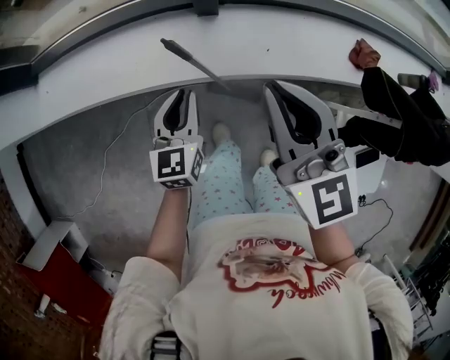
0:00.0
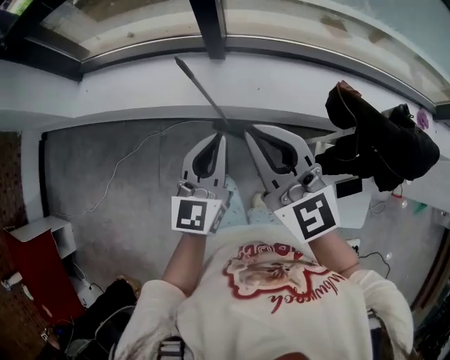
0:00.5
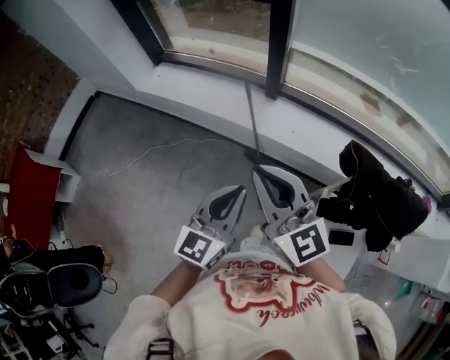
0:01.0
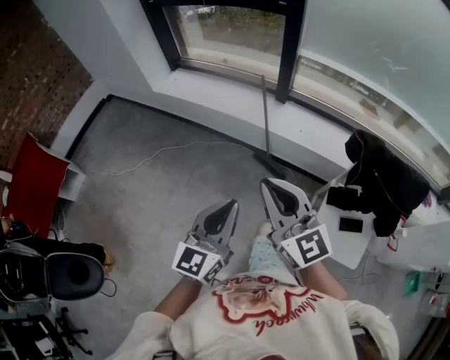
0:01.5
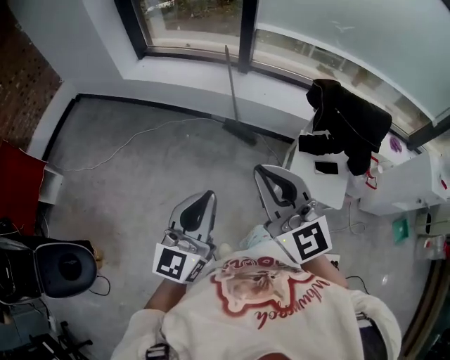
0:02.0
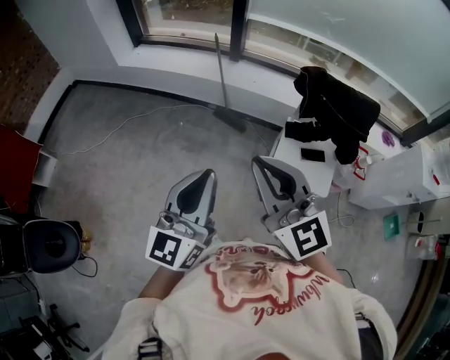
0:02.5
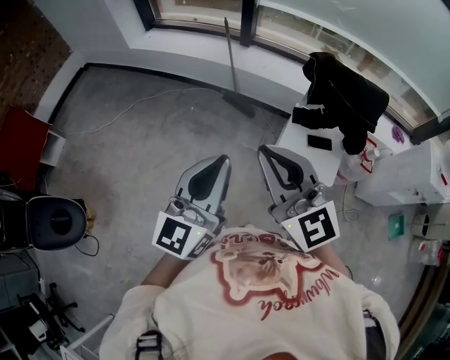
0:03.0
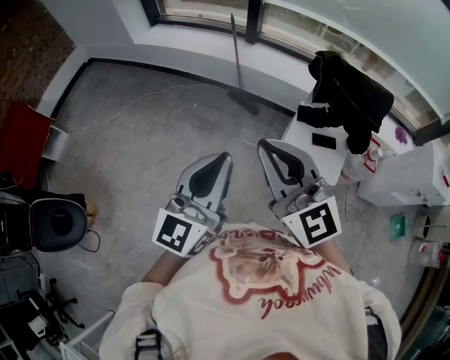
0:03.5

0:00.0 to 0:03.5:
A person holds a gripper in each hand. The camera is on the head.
0:00.0 to 0:02.0: Both grippers are carried backward, about 70 cm. The left gripper goes roughly 35 cm upward, and angles its fingers upward, by approximately 30 degrees, while the right gripper turns by some 30 degrees.
0:02.0 to 0:03.5: The left gripper shifts some 15 cm to the right and backward. Meanwhile the right gripper shifts roughly 10 cm backward and to the right.

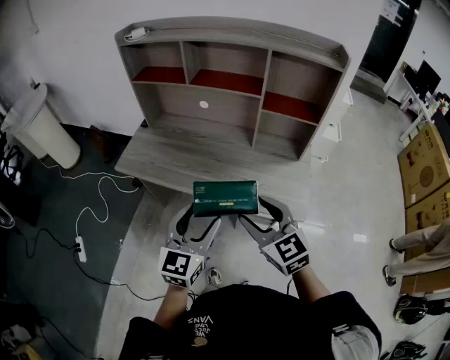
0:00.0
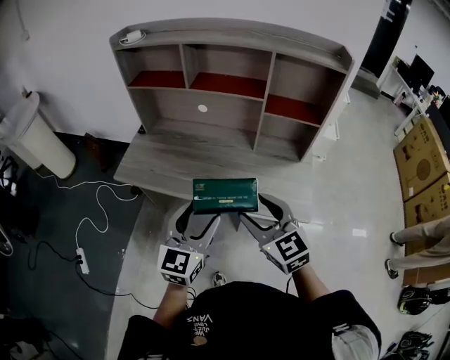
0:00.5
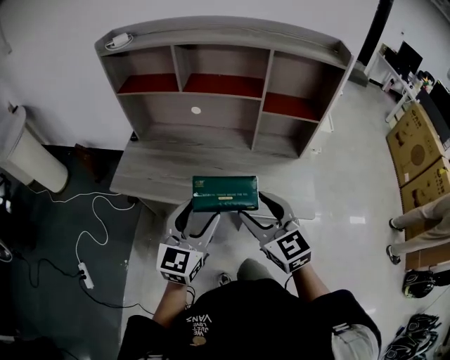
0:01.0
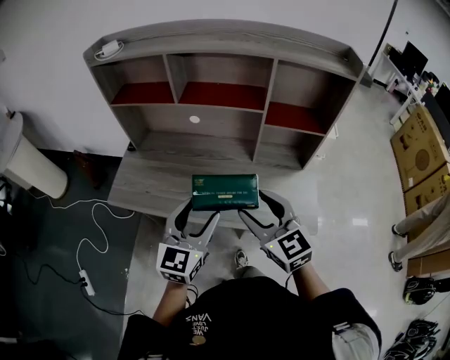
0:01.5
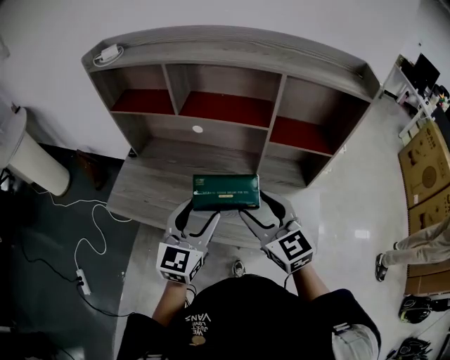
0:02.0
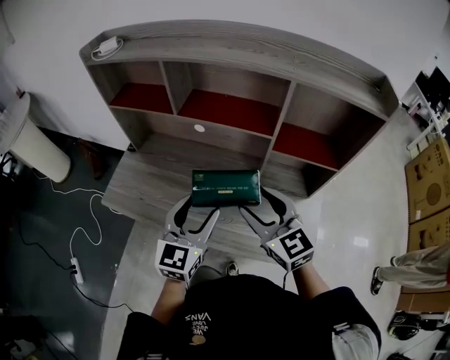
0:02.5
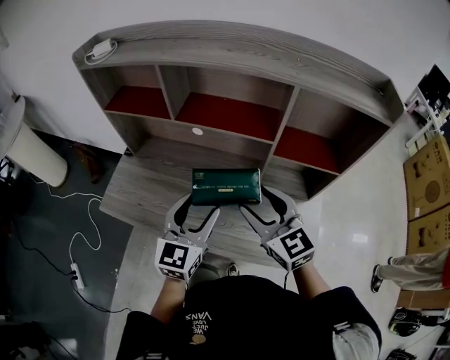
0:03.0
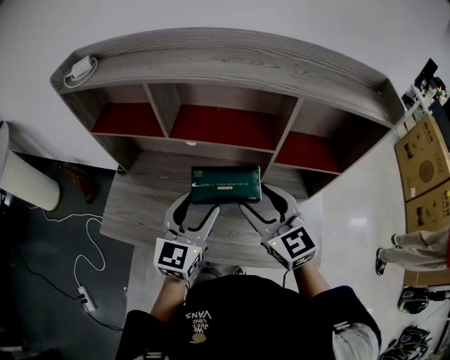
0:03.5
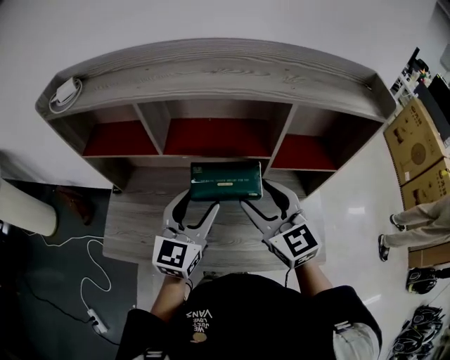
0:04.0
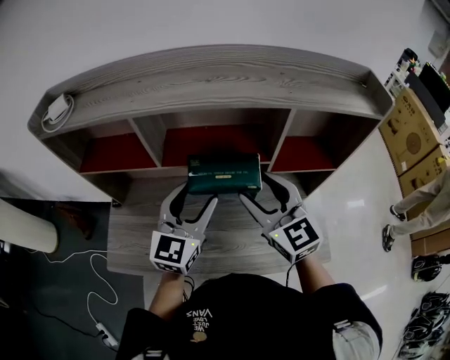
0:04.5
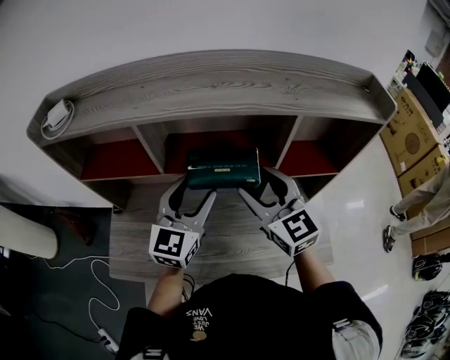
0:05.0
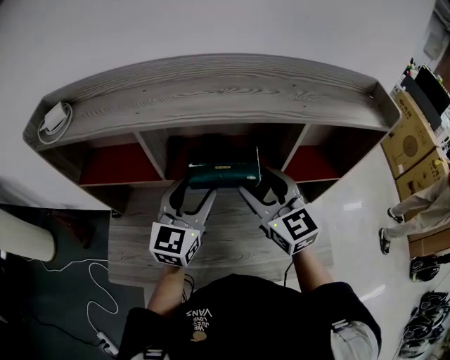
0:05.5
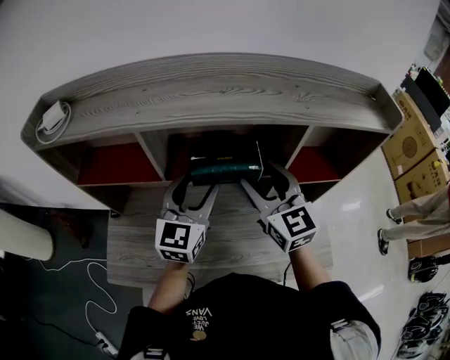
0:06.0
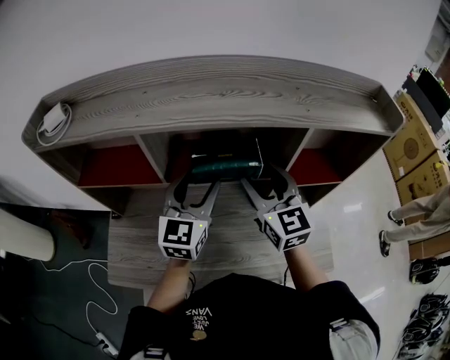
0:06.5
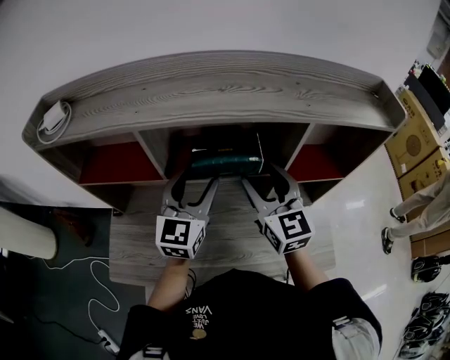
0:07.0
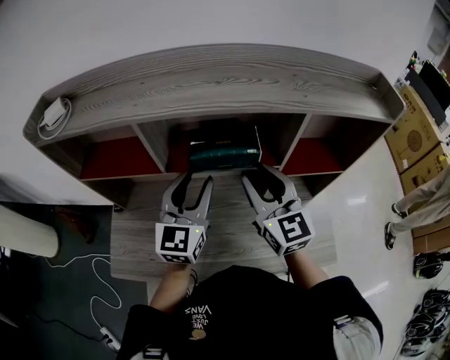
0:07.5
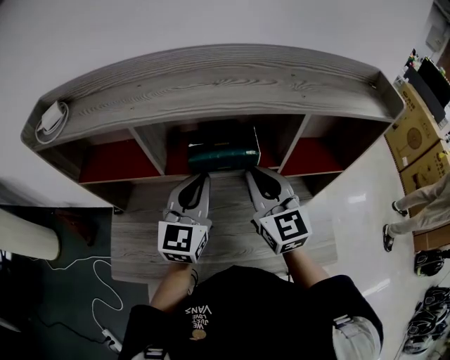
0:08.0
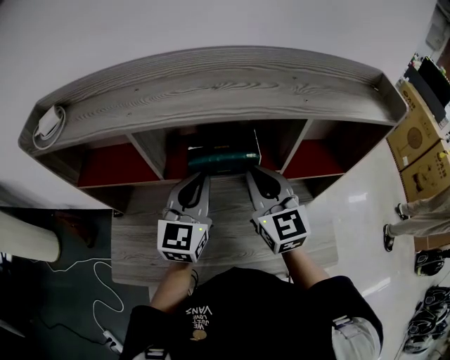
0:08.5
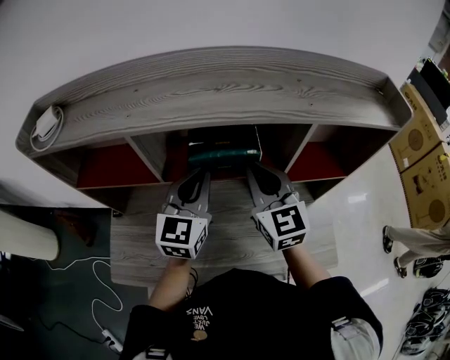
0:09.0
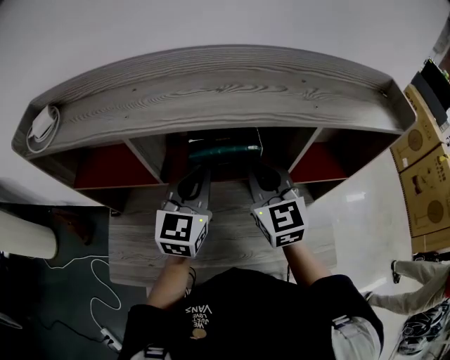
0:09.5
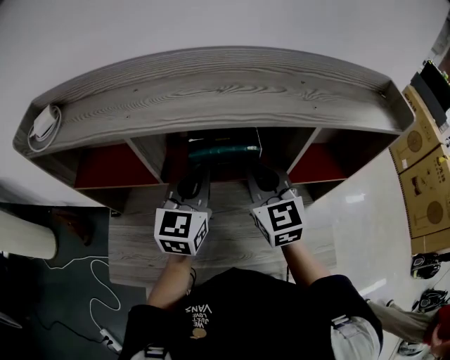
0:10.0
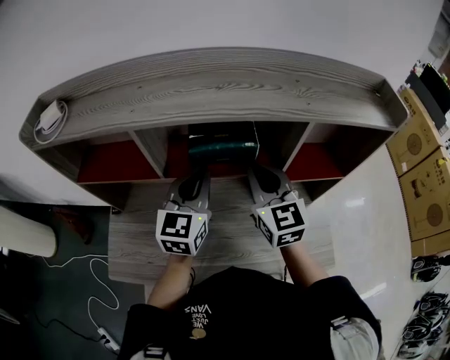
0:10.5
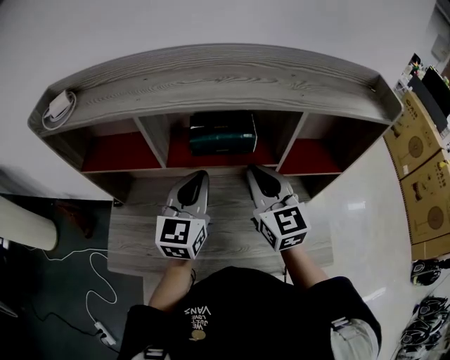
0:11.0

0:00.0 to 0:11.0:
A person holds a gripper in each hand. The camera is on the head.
0:00.0 to 0:02.0: The two grippers go some 20 cm forward.
0:02.0 to 0:03.5: The grippers both shift forward by about 10 cm.
0:03.5 to 0:05.5: Both grippers travel together forward, roughly 10 cm.
0:05.5 to 0:07.5: The right gripper closes its fingers.
0:07.5 to 0:09.0: The left gripper closes. The right gripper closes up.
0:09.0 to 0:11.0: The grippers stay close to where they were, moving slightly.

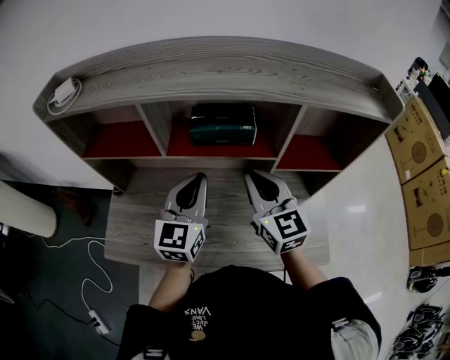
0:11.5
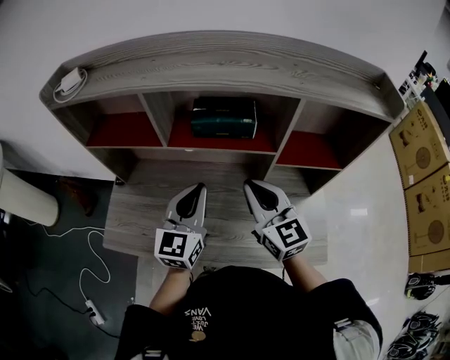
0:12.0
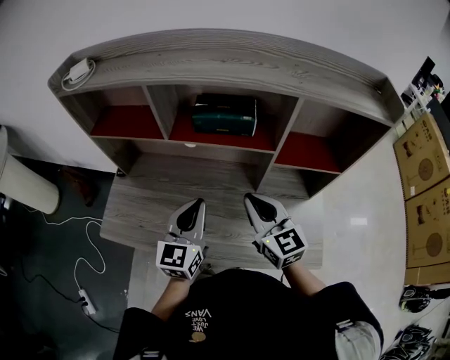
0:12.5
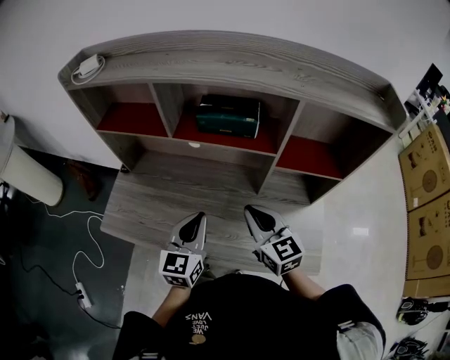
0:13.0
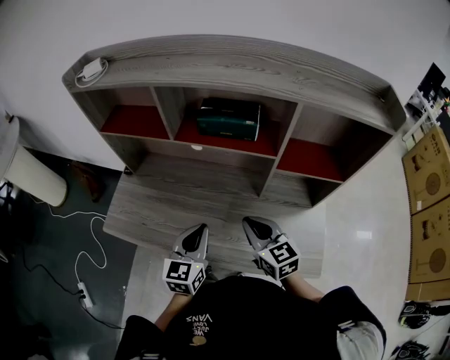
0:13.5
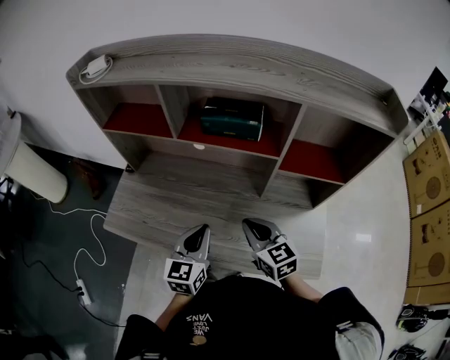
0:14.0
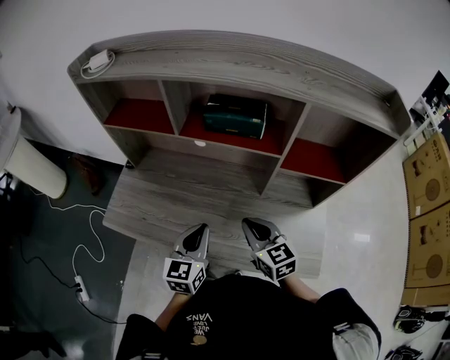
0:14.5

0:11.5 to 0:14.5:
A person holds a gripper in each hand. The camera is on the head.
0:11.5 to 0:13.0: The left gripper travels backward and downward by approximately 15 cm. Meanwhile the right gripper is displaced downward and backward by about 15 cm.
0:13.0 to 0:14.5: The right gripper travels downward by approximately 5 cm.

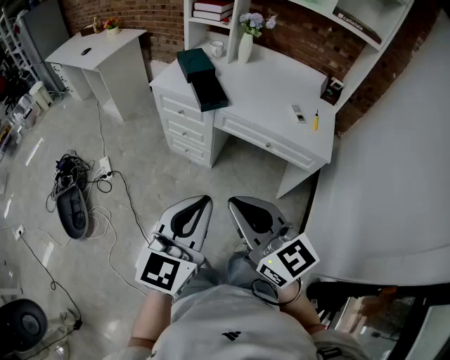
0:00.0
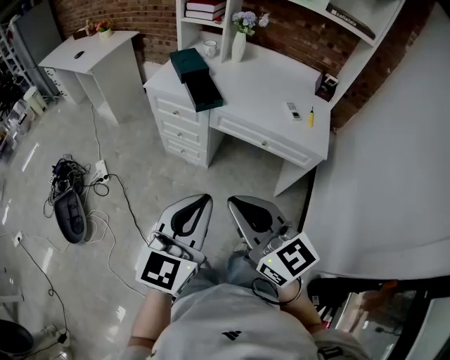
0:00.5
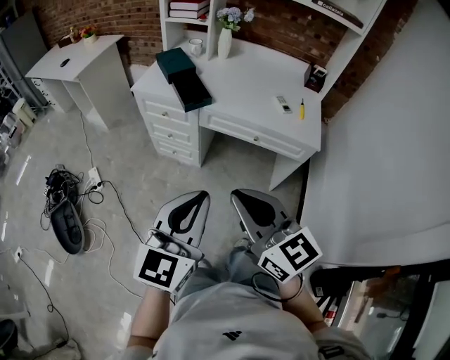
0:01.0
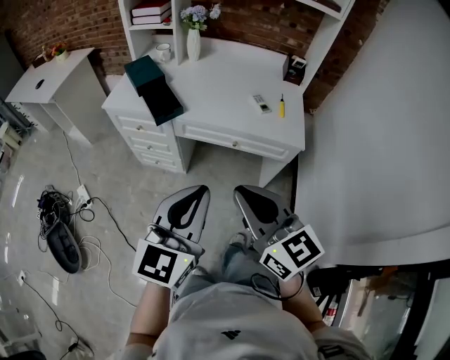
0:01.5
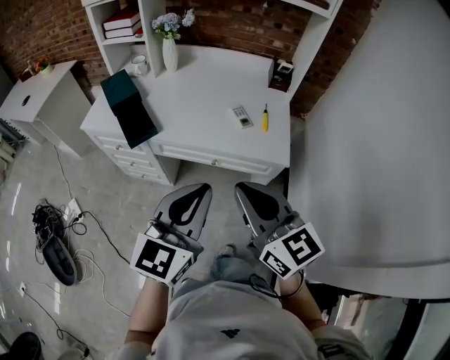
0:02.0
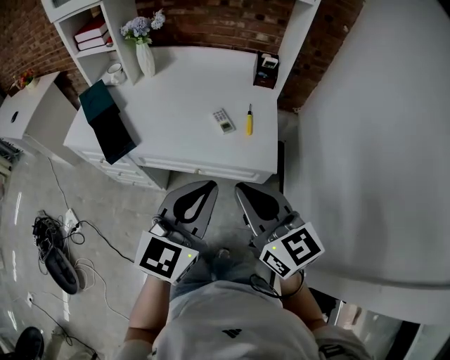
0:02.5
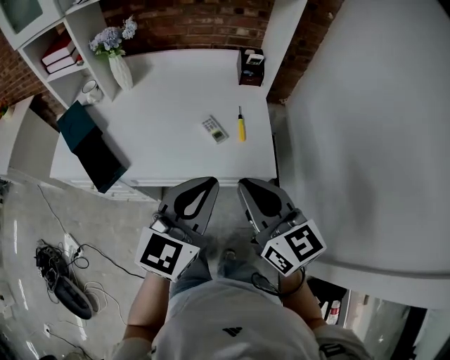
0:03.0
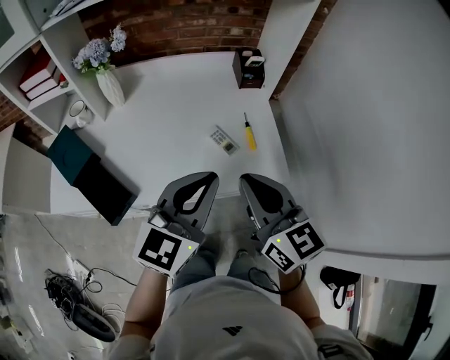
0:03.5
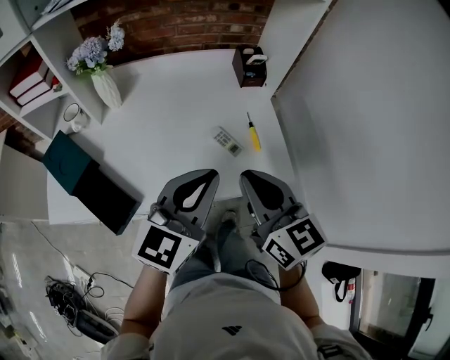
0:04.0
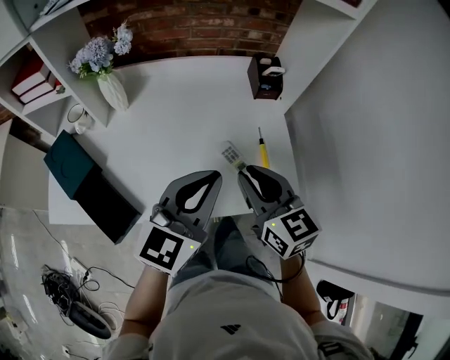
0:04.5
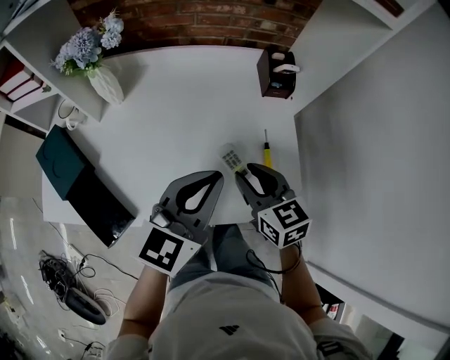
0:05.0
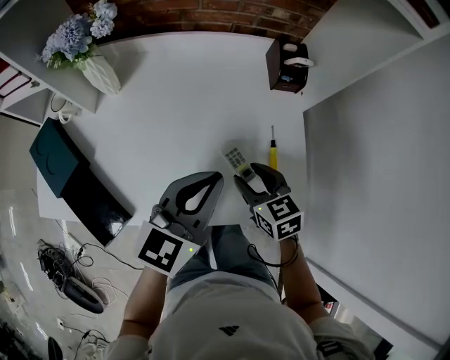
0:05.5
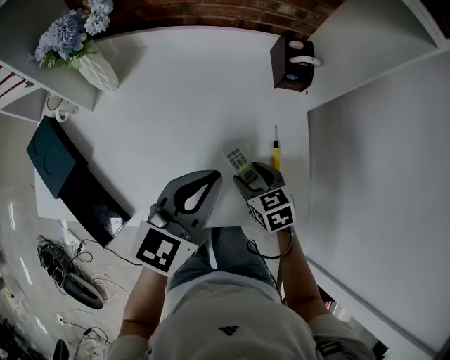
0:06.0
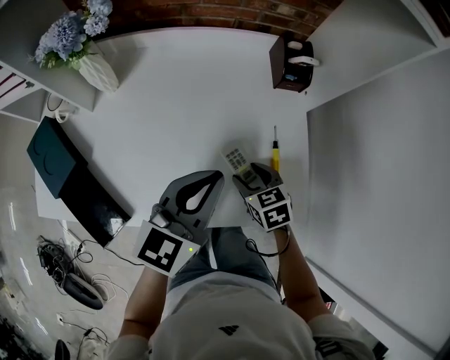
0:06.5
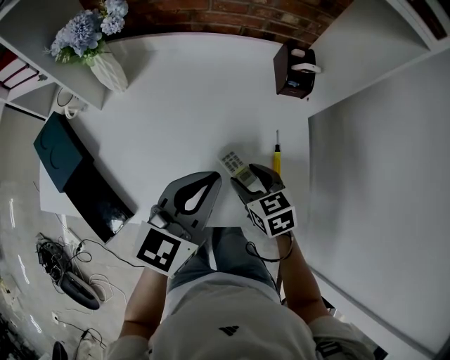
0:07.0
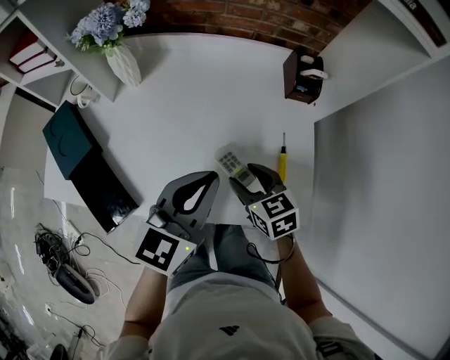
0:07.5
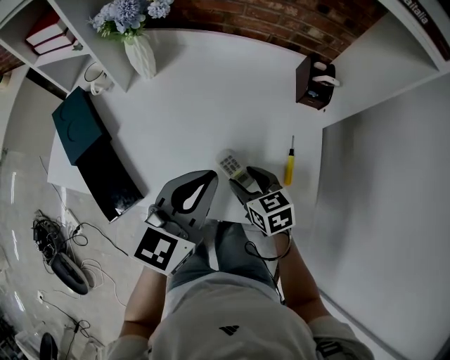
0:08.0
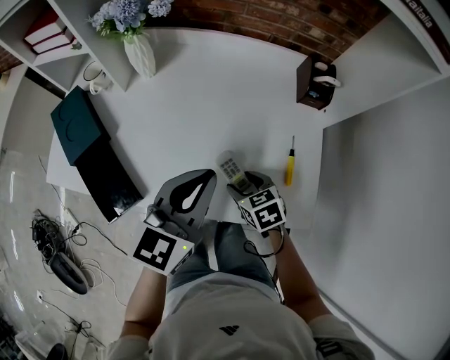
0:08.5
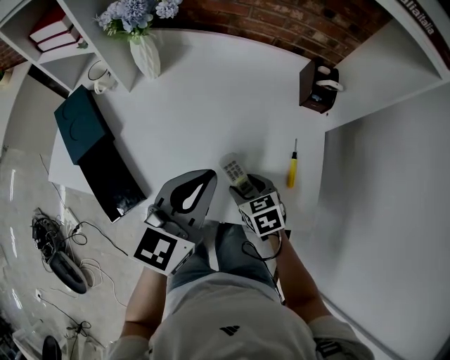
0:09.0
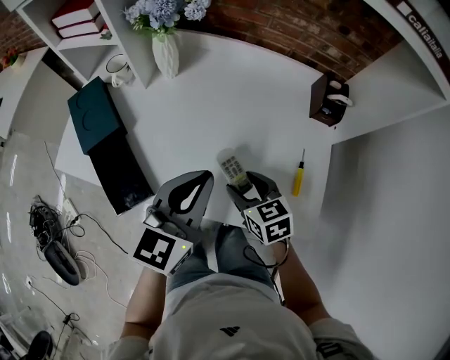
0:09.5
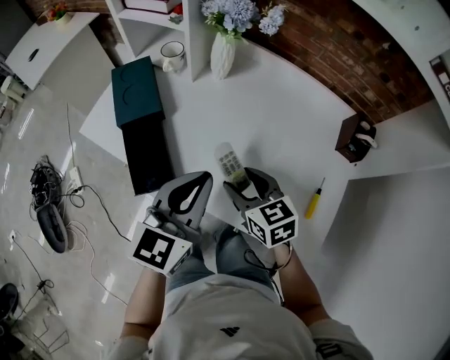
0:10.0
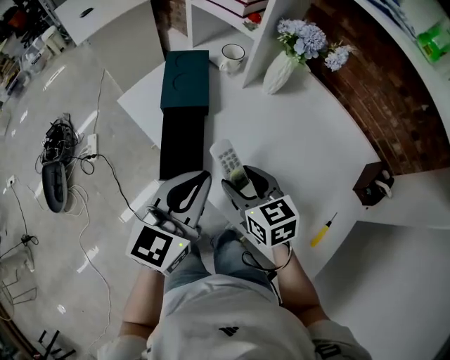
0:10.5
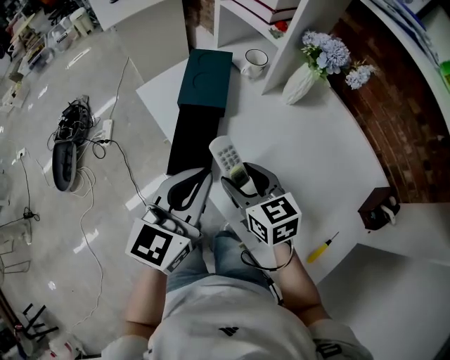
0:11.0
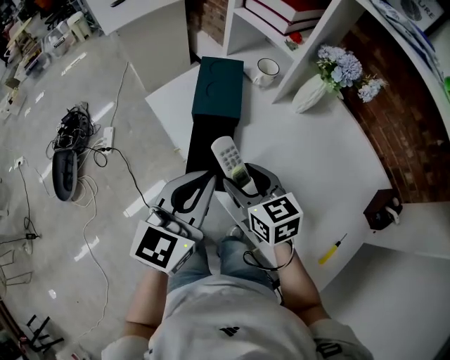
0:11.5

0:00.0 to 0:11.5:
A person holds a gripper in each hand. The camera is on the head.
0:00.0 to 0:02.0: Both grippers travel together to the right and forward, some 25 cm.
0:02.0 to 0:04.0: The left gripper shifts by approximately 25 cm, and turns by about 30 degrees. Meanwhile the right gripper moves about 25 cm, and rotates about 30 degrees.
0:04.0 to 0:06.0: The right gripper shifts about 30 cm downward and forward, points its fingers roughly 40 degrees further downward, and opens up. Meanwhile the left gripper heads forward and downward, covering about 15 cm.
0:06.0 to 0:07.5: The right gripper travels upward by some 5 cm.
0:07.5 to 0:09.5: Both grippers move to the left, some 5 cm.
0:09.5 to 0:11.5: The left gripper shifts by about 25 cm, and turns by roughly 40 degrees. Meanwhile the right gripper moves approximately 25 cm, and changes its angle by approximately 40 degrees.
